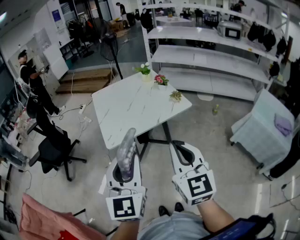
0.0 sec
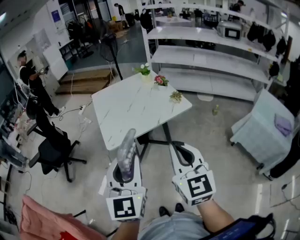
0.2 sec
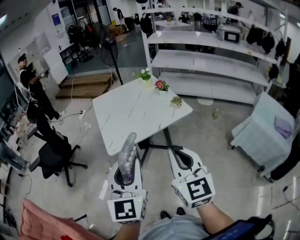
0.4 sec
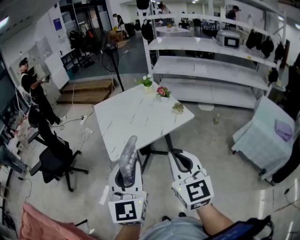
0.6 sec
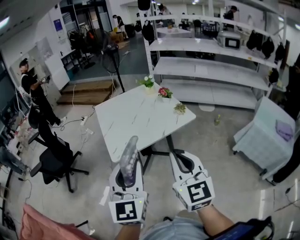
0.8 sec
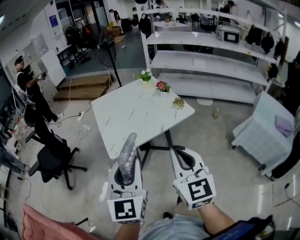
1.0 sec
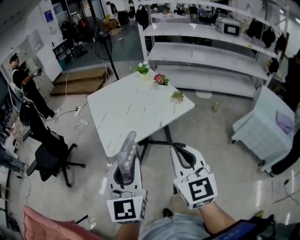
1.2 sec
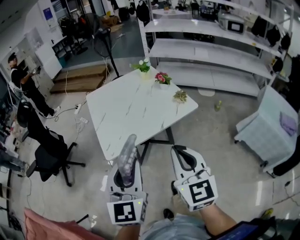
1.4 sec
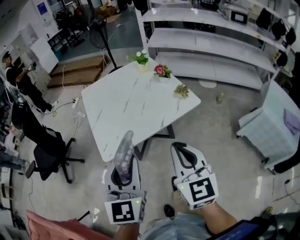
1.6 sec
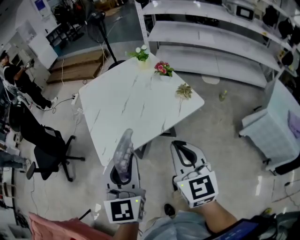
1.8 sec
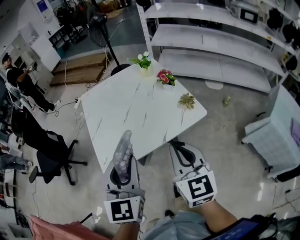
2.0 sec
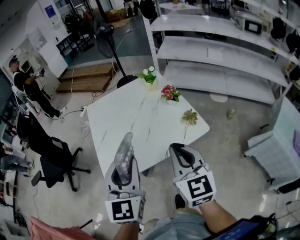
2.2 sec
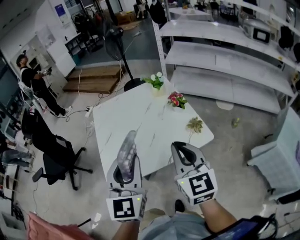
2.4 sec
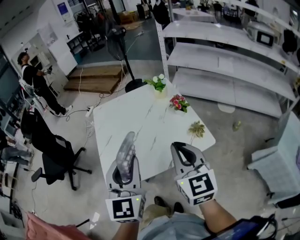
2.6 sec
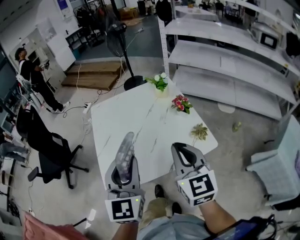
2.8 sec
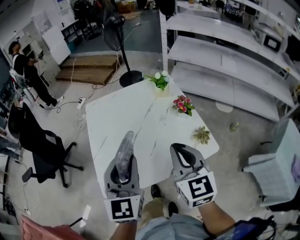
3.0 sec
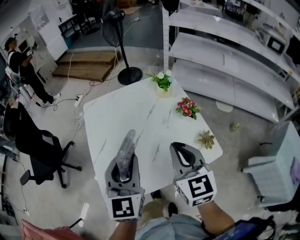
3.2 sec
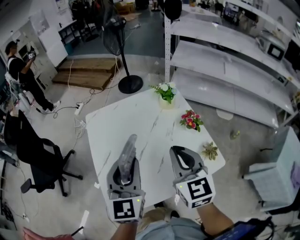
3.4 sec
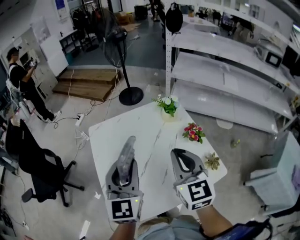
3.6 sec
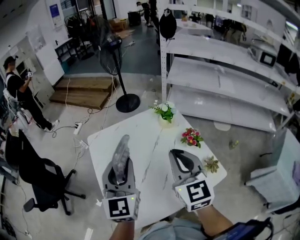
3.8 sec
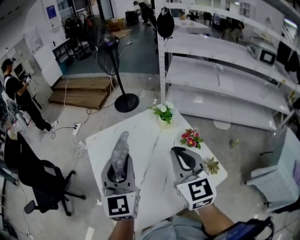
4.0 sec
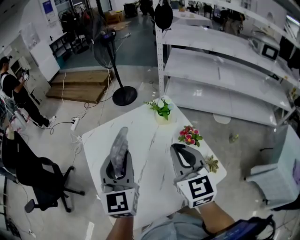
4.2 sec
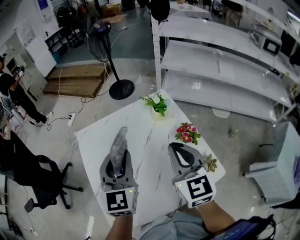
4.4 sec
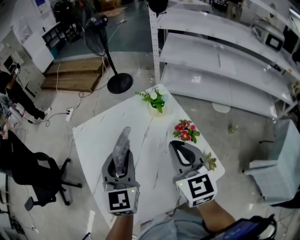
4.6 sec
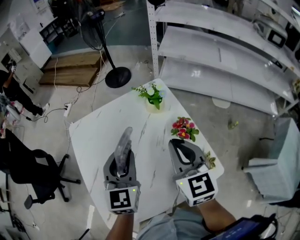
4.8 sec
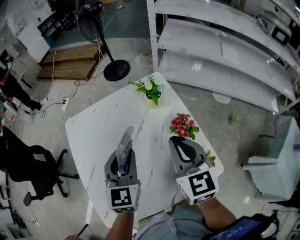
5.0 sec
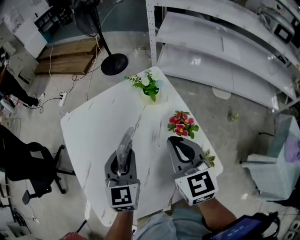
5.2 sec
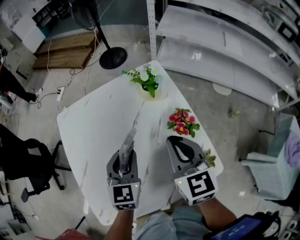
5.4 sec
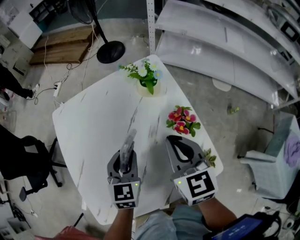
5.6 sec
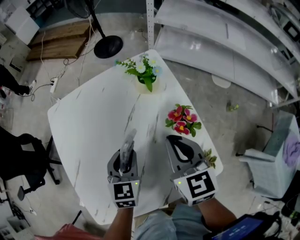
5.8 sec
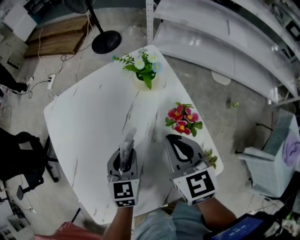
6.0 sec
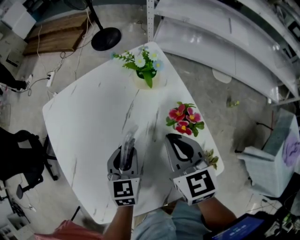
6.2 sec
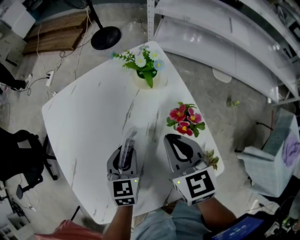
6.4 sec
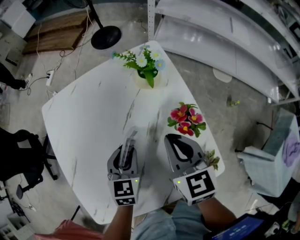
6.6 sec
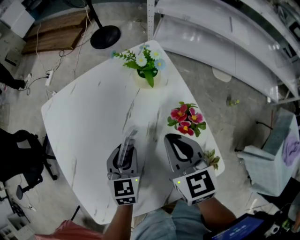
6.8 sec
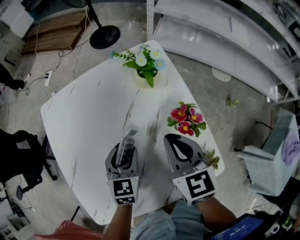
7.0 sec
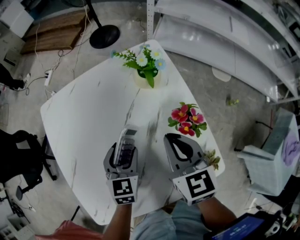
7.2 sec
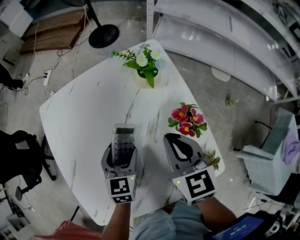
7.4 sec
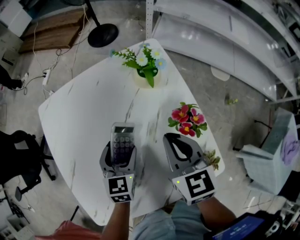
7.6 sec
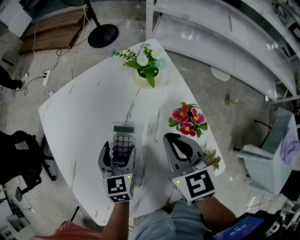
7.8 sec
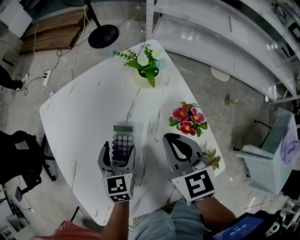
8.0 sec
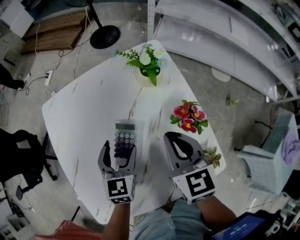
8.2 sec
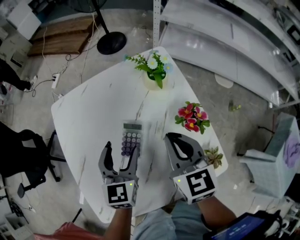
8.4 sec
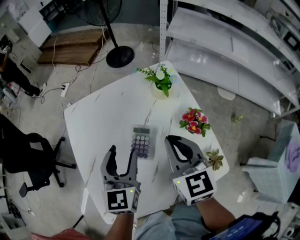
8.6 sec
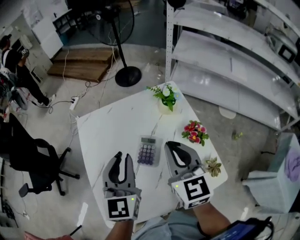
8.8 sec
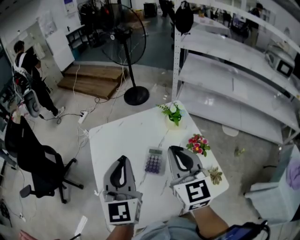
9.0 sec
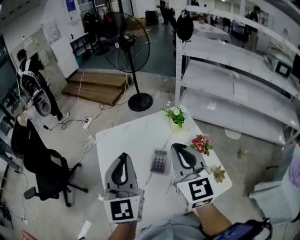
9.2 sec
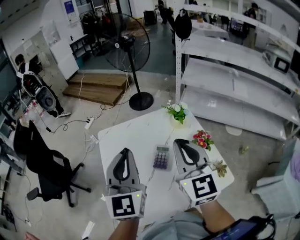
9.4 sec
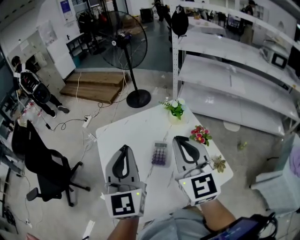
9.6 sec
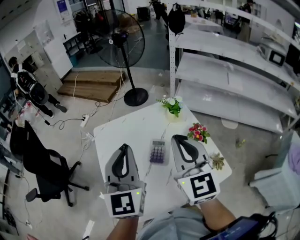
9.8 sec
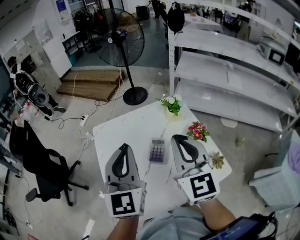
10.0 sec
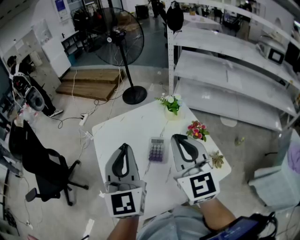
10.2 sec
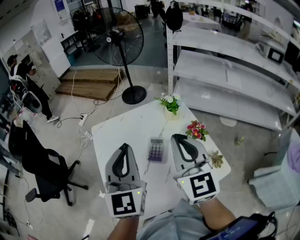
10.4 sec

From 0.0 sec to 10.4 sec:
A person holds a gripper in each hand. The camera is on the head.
From 0.0 sec to 1.4 sec: The two grippers go some 10 cm forward.
From 1.4 sec to 3.0 sec: Both grippers move forward, roughly 30 cm.
From 3.0 sec to 4.4 sec: Both grippers move forward, roughly 20 cm.
From 4.4 sec to 6.0 sec: The left gripper is displaced downward by about 25 cm, and changes its angle by roughly 30 degrees. The right gripper moves downward, about 15 cm.
From 6.0 sec to 7.4 sec: The left gripper opens its fingers.
From 7.4 sec to 9.0 sec: The right gripper travels upward and to the left by about 20 cm, and rotates about 30 degrees. Meanwhile the left gripper goes roughly 30 cm upward, tips its fingers upward by approximately 30 degrees, and closes up.
From 9.0 sec to 10.4 sec: The left gripper ends up some 5 cm from where it was; the right gripper goes some 5 cm backward.

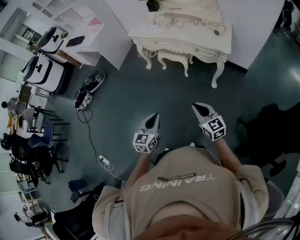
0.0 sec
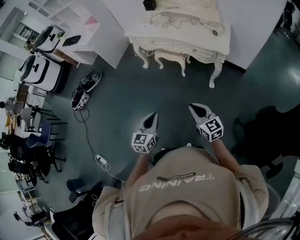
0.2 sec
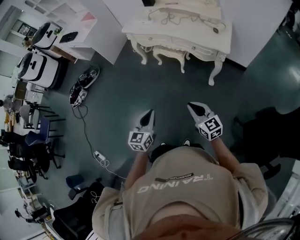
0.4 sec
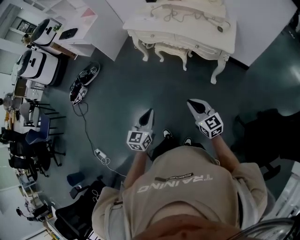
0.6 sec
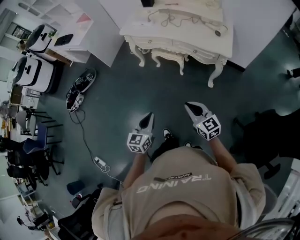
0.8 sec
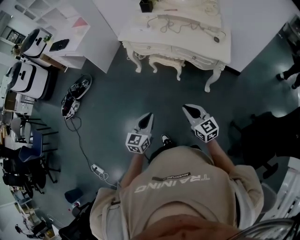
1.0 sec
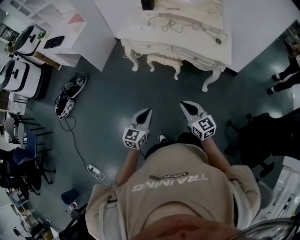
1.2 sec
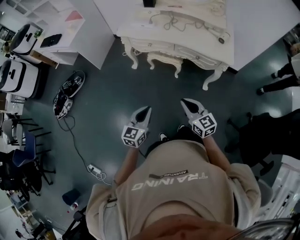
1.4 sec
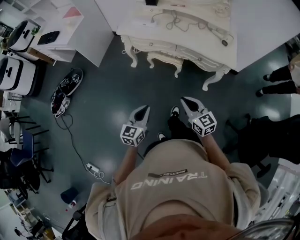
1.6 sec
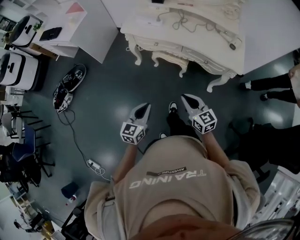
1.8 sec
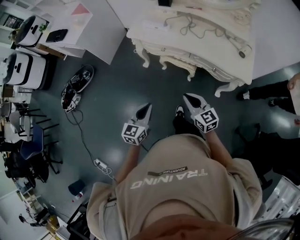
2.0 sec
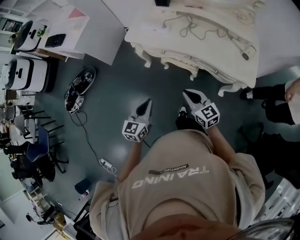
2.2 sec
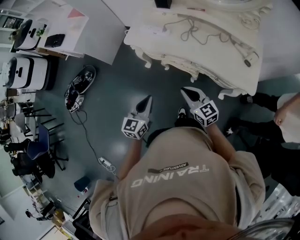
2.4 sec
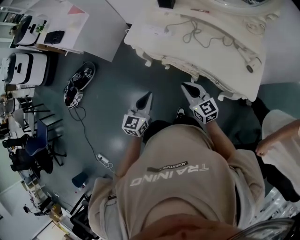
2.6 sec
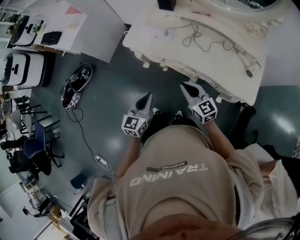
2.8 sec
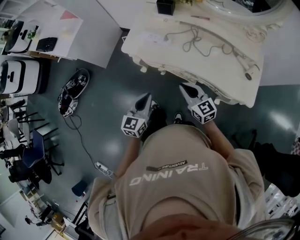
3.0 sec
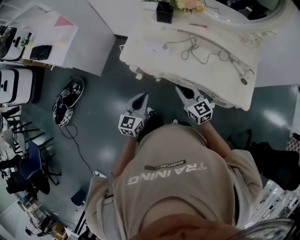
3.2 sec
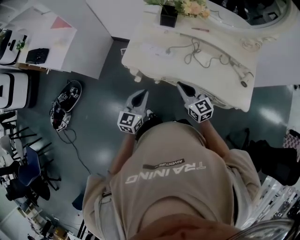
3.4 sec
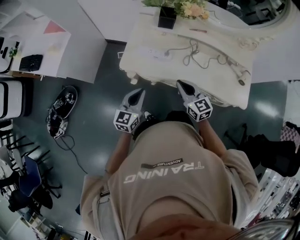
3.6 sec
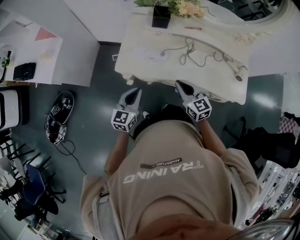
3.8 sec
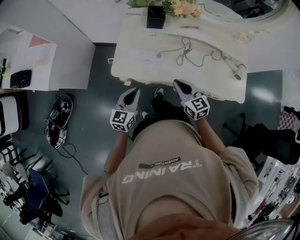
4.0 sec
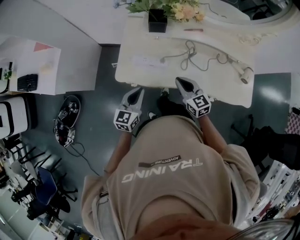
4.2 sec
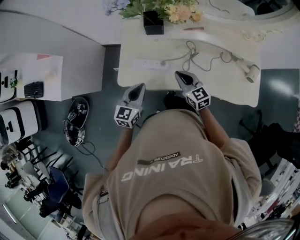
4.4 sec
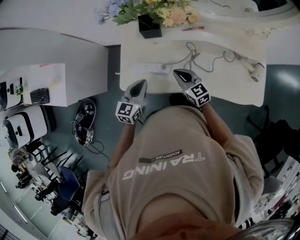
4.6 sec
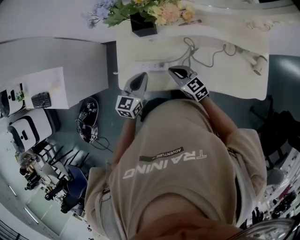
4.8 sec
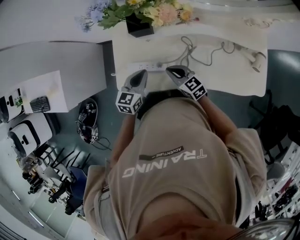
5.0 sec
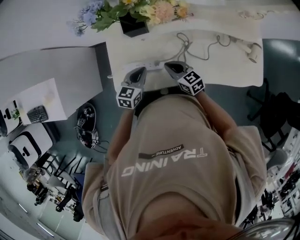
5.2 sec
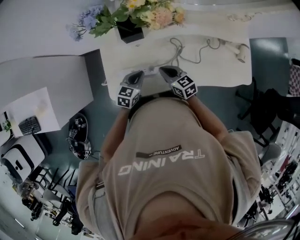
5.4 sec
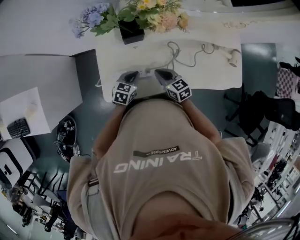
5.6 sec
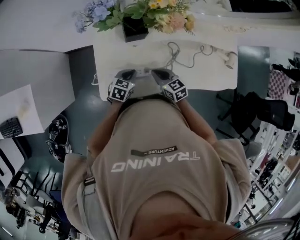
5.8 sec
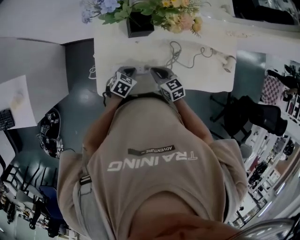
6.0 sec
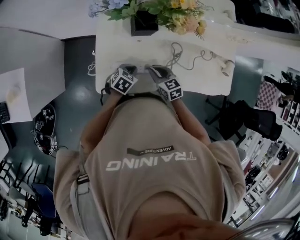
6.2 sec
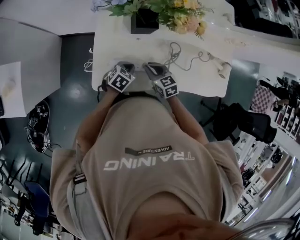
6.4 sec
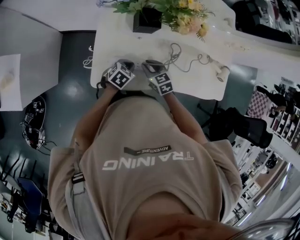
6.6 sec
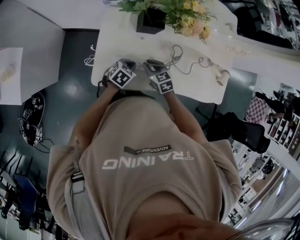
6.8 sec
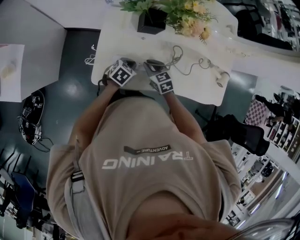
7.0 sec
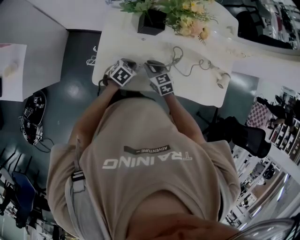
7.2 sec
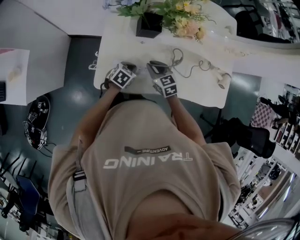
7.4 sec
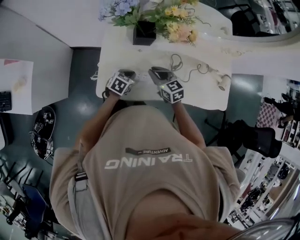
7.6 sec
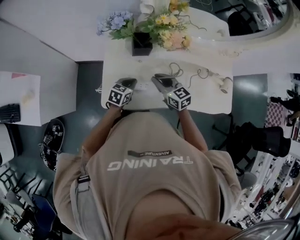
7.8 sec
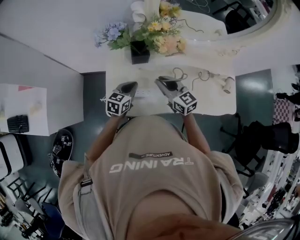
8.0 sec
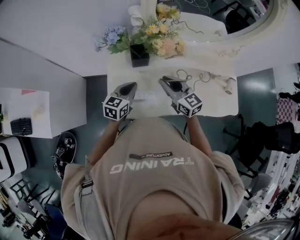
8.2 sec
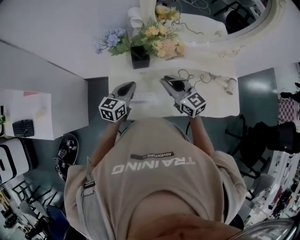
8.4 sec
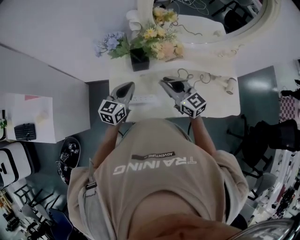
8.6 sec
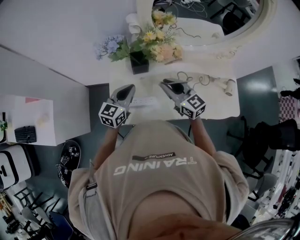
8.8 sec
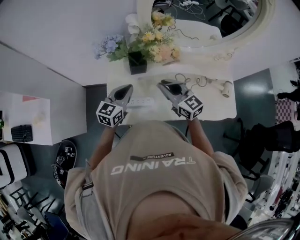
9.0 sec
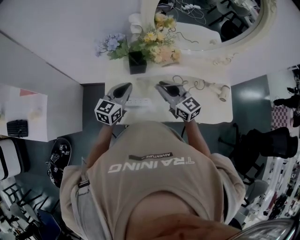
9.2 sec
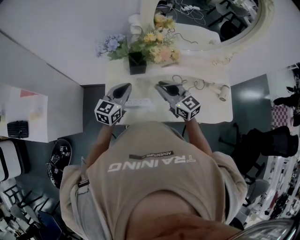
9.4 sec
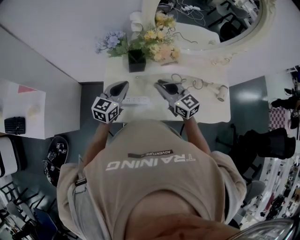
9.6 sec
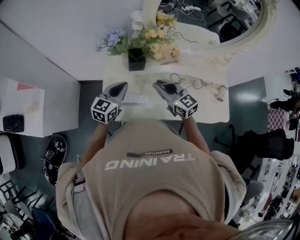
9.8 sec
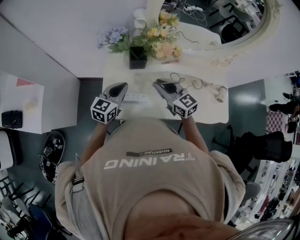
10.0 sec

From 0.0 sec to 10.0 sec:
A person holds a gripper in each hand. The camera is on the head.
From 0.0 sec to 1.4 sec: The right gripper heads forward and to the left, covering some 25 cm. The left gripper is displaced forward by approximately 25 cm.
From 1.4 sec to 2.8 sec: The grippers both shift forward by about 40 cm.
From 2.8 sec to 4.2 sec: Both grippers travel together forward, about 25 cm.
From 4.2 sec to 5.8 sec: Both grippers travel together forward and downward, roughly 20 cm. The right gripper changes its angle by some 20 degrees. The left gripper changes its angle by some 40 degrees.
From 5.8 sec to 7.2 sec: The grippers make only small movements.
From 7.2 sec to 8.6 sec: Both grippers move upward, approximately 25 cm. The right gripper points its fingers about 30 degrees further upward; the left gripper tilts its fingers some 30 degrees upward.
From 8.6 sec to 10.0 sec: There are only small adjustments of the grippers.

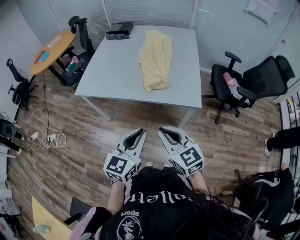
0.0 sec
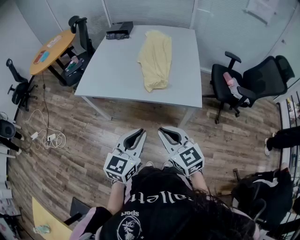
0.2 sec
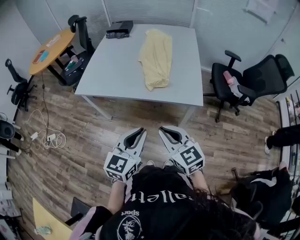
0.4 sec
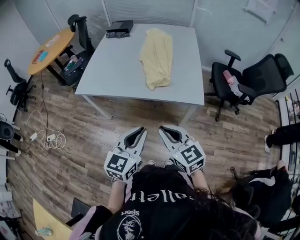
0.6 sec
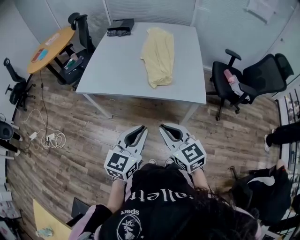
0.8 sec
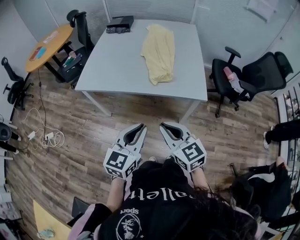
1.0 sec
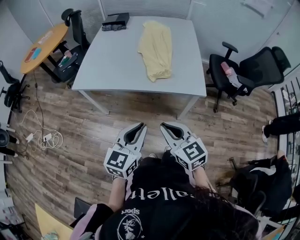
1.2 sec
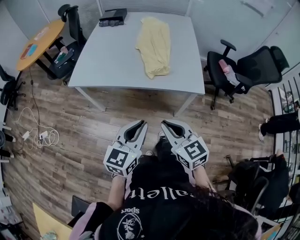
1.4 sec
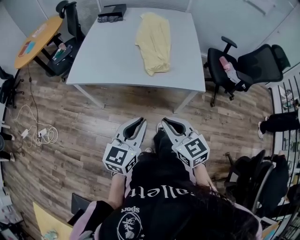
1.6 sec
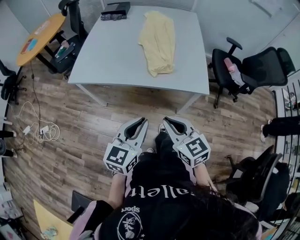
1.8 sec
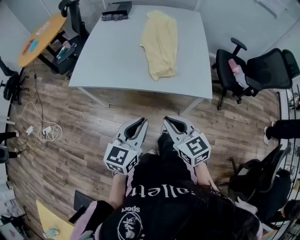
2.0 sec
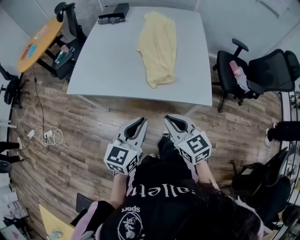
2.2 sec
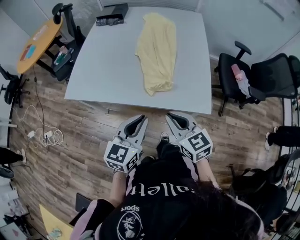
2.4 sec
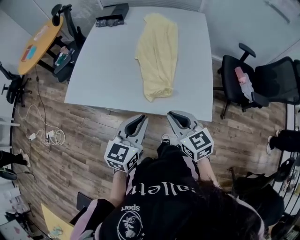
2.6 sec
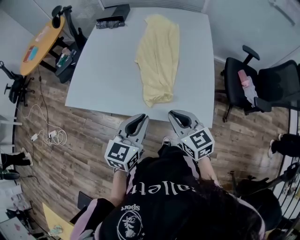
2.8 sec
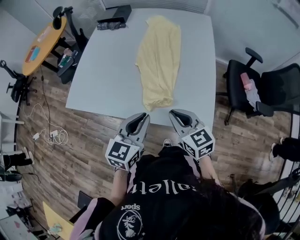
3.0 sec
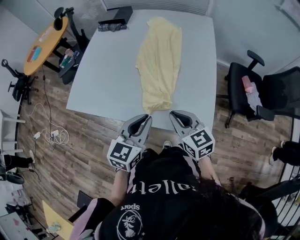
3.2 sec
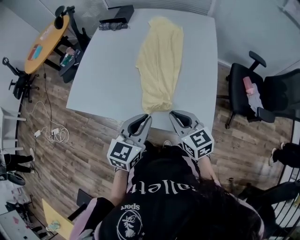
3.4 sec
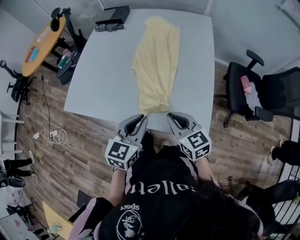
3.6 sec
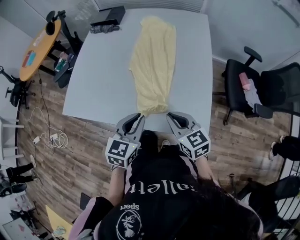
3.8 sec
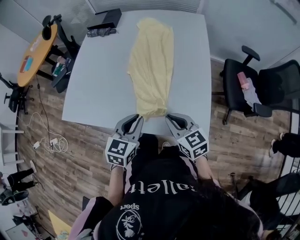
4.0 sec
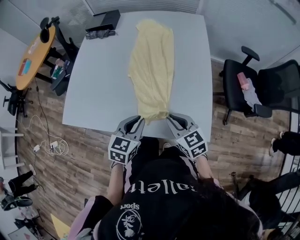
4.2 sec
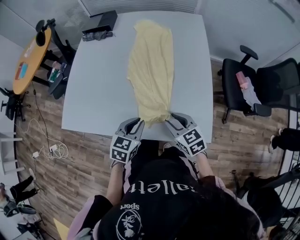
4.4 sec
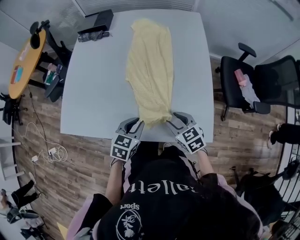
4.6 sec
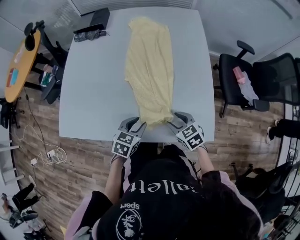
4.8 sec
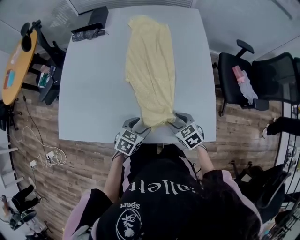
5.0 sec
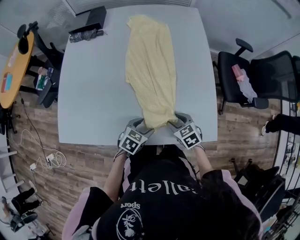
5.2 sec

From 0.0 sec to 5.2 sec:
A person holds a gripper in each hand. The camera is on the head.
From 0.0 sec to 1.8 sec: The right gripper shifts by some 5 cm. The left gripper is displaced to the left by roughly 5 cm.
From 1.8 sec to 3.4 sec: Both grippers travel together forward and to the right, roughly 30 cm.
From 3.4 sec to 5.2 sec: Both grippers travel together downward, about 20 cm. The left gripper swivels about 40 degrees, and opens. The right gripper points its fingers some 30 degrees further downward, and opens up.
